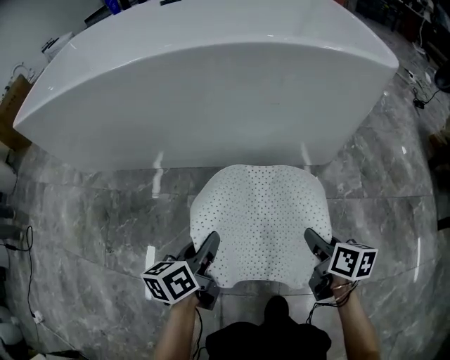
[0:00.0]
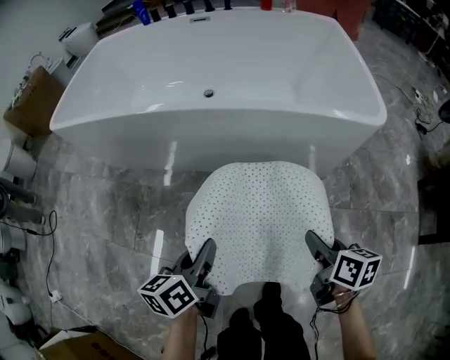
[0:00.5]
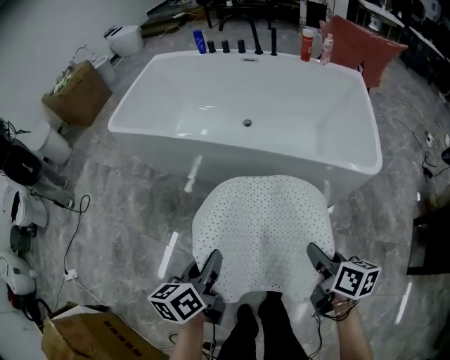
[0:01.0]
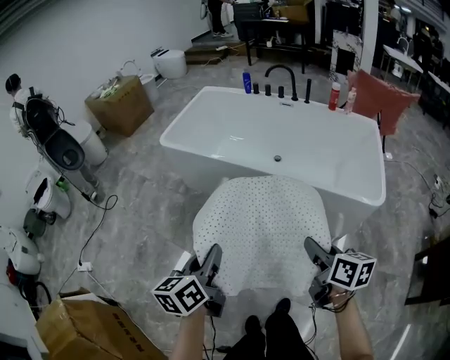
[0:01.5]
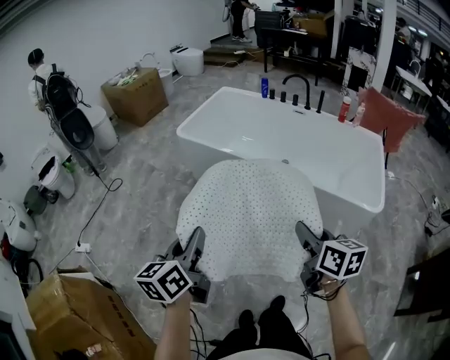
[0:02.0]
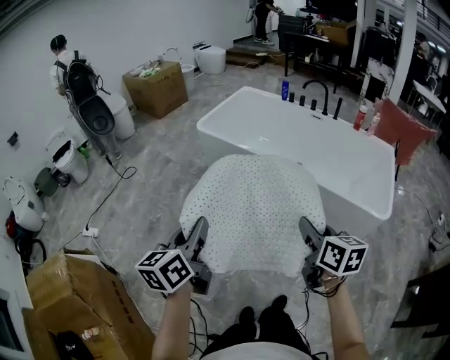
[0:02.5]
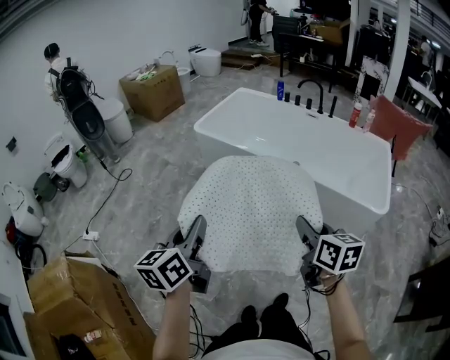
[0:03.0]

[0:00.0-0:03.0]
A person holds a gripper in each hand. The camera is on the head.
0.0 to 1.5 s: The grippers both shift upward by some 60 cm. The left gripper turns by about 30 degrees. Meanwhile the right gripper changes its angle by approximately 30 degrees.
1.5 to 3.0 s: The right gripper travels to the left and upward by about 15 cm, while the left gripper goes some 20 cm to the left, upward and backward.

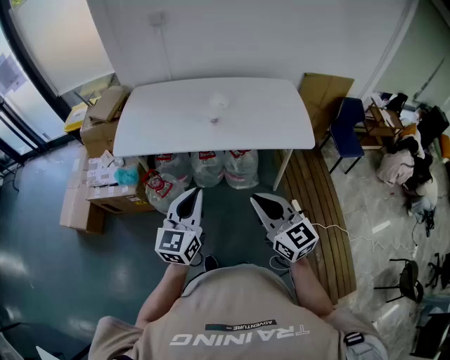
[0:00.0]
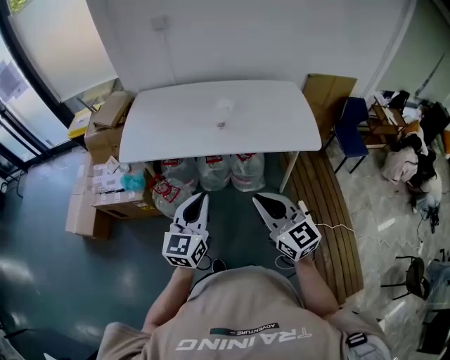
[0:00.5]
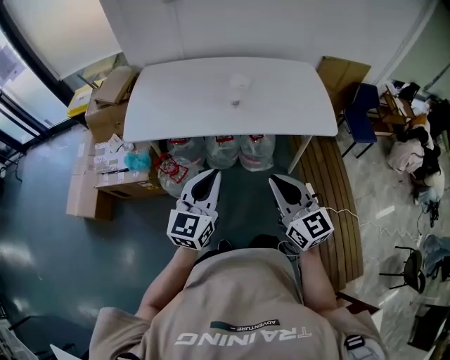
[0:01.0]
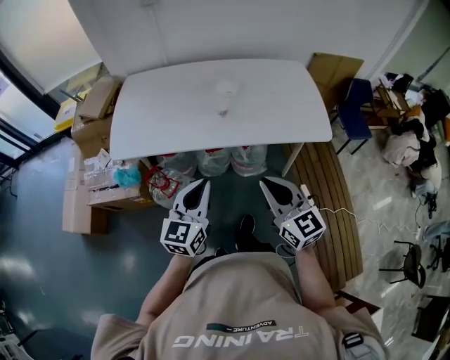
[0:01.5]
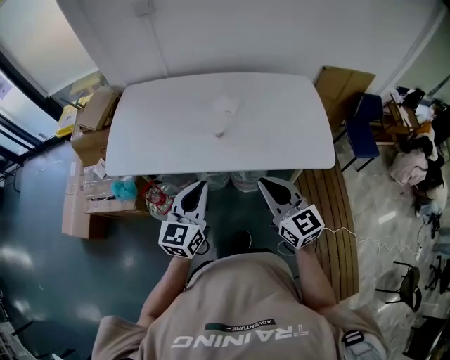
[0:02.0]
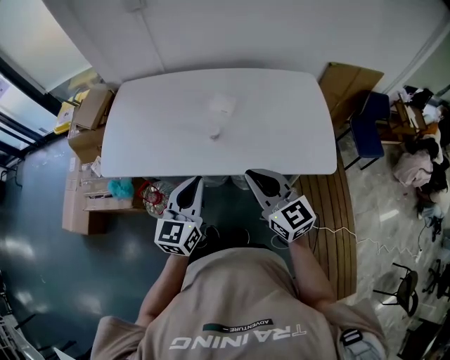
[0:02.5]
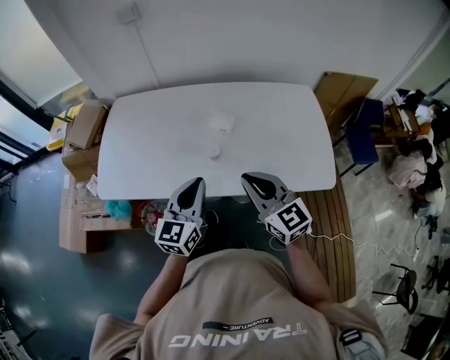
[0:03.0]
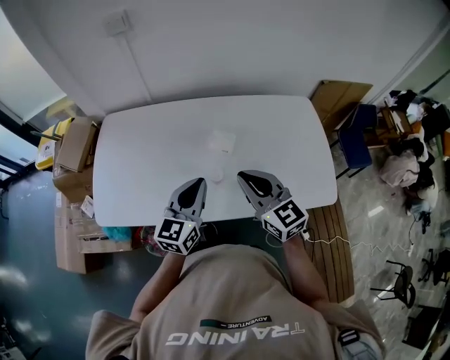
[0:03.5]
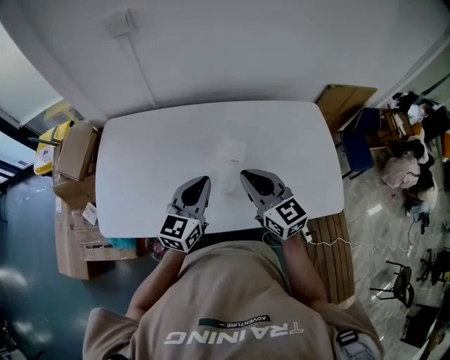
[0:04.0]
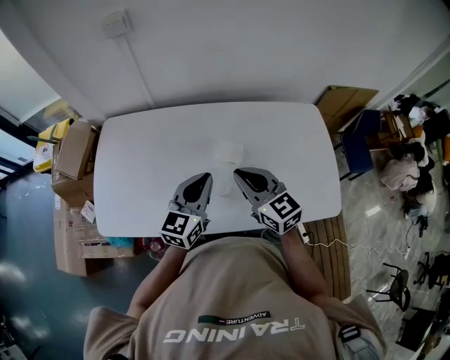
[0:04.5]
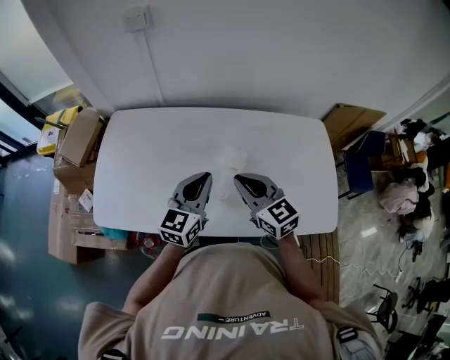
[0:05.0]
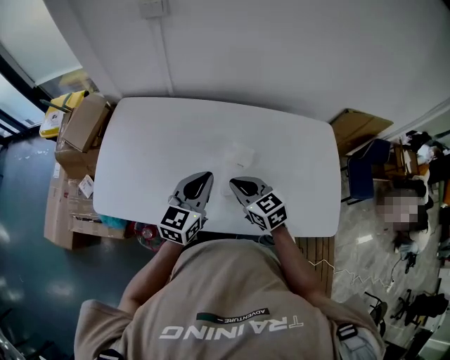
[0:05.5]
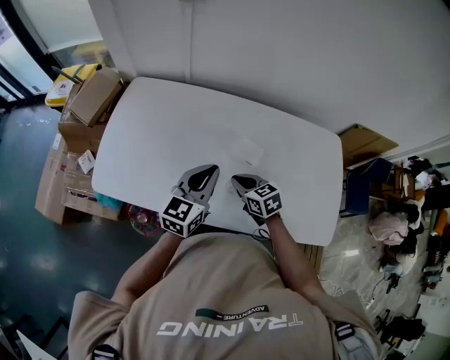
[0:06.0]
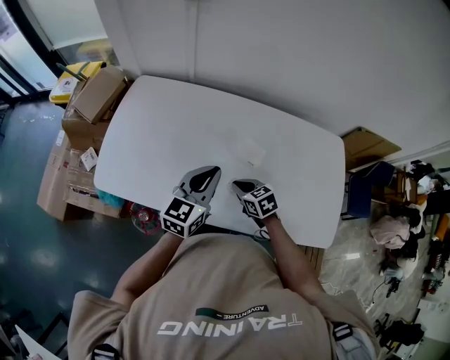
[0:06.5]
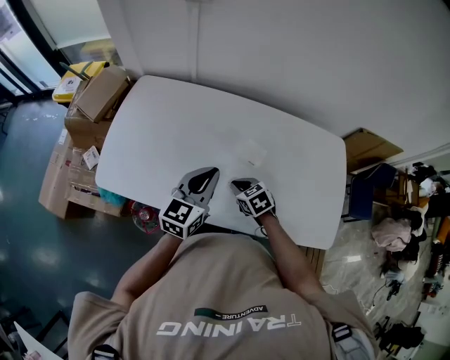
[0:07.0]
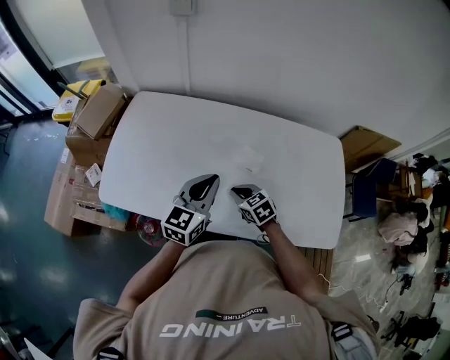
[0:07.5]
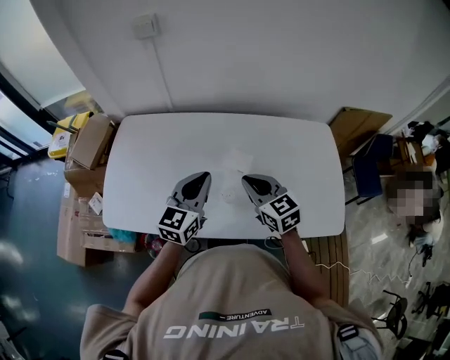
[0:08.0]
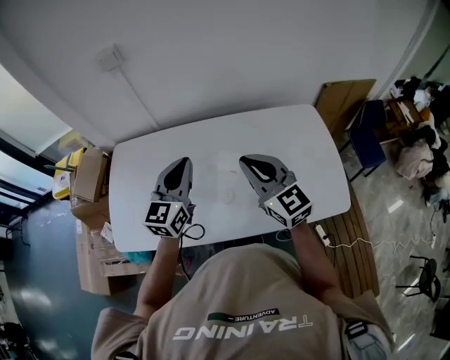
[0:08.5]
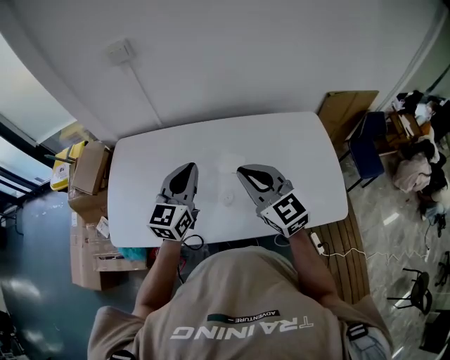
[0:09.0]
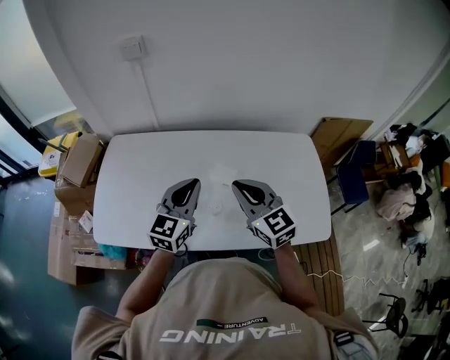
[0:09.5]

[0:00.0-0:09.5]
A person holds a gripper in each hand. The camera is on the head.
0.0 to 2.0 s: Both grippers move forward, approximately 20 cm.
2.0 to 4.0 s: Both grippers travel together forward, about 30 cm.
4.0 to 5.5 s: The right gripper travels downward by about 10 cm, and changes its angle by some 20 degrees.
5.5 to 7.5 s: The right gripper moves downward, some 10 cm.
7.5 to 9.5 s: The left gripper shifts approximately 5 cm upward. Meanwhile the right gripper goes some 25 cm upward, and angles its fingers upward, by some 30 degrees.

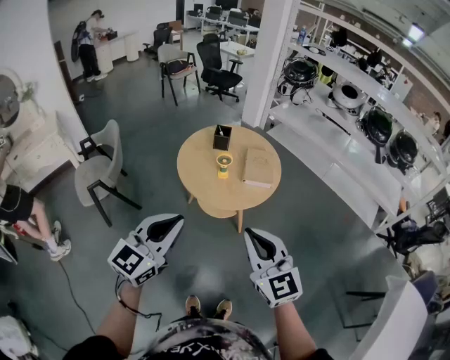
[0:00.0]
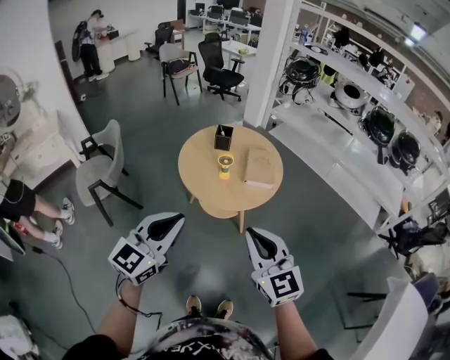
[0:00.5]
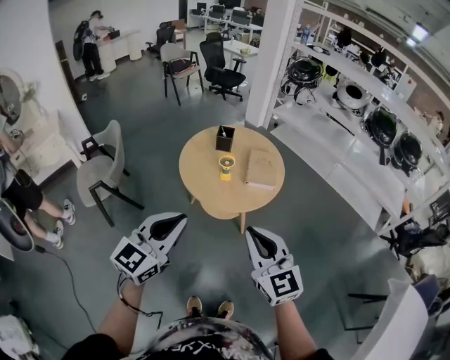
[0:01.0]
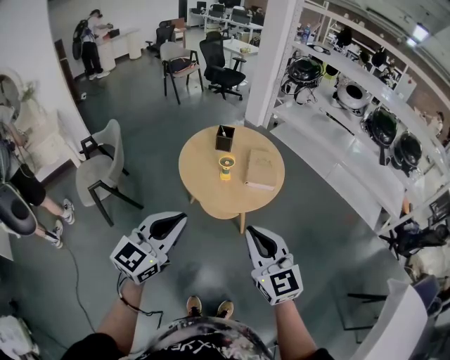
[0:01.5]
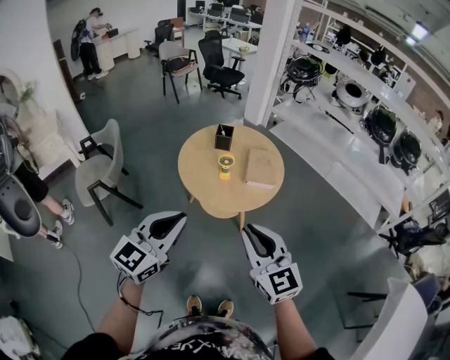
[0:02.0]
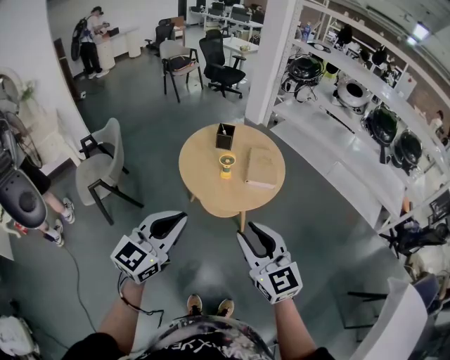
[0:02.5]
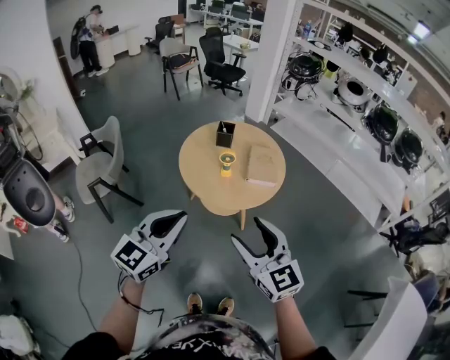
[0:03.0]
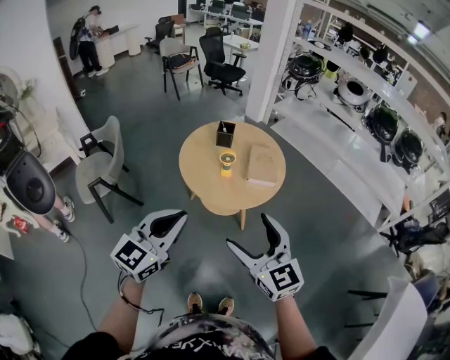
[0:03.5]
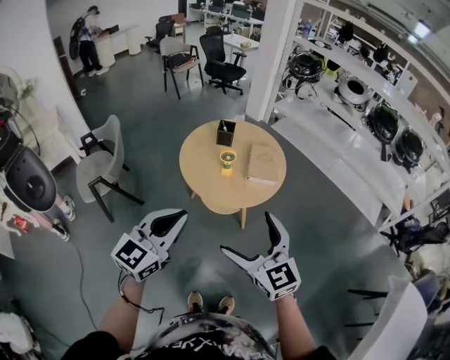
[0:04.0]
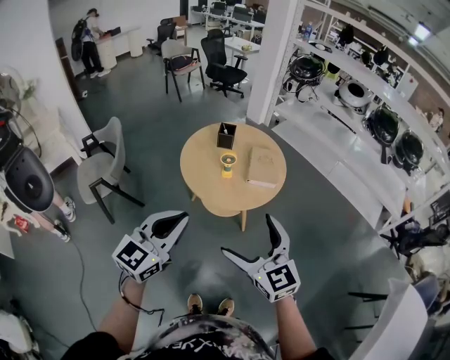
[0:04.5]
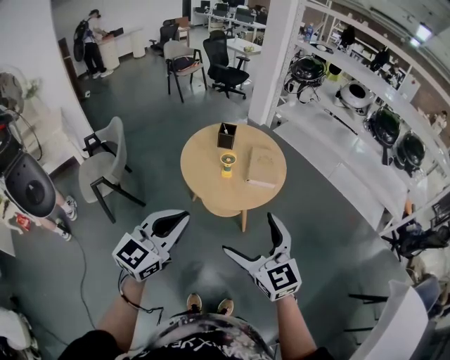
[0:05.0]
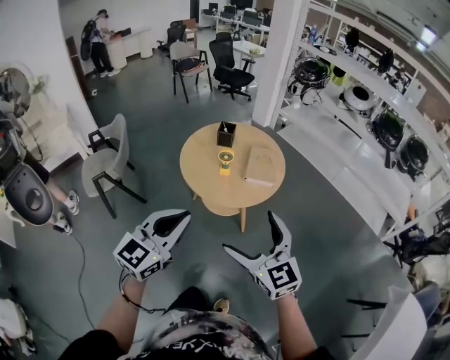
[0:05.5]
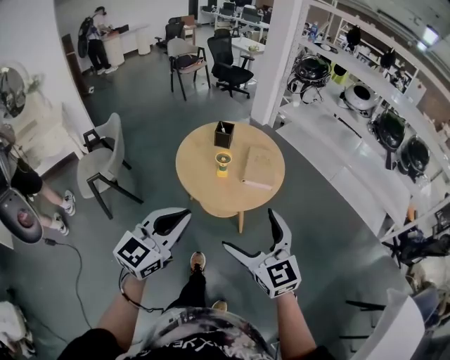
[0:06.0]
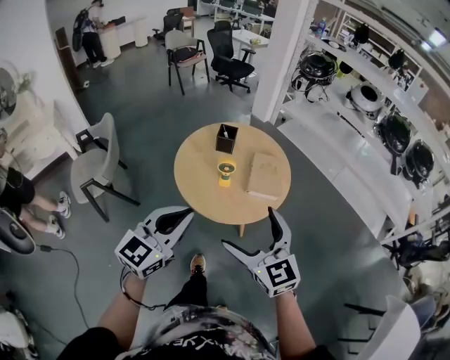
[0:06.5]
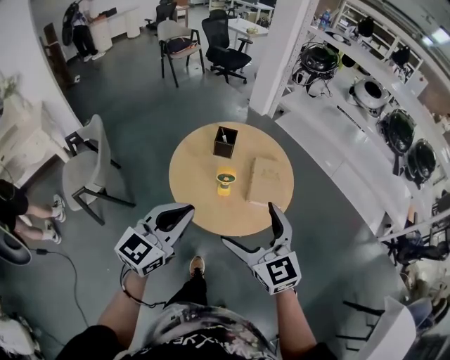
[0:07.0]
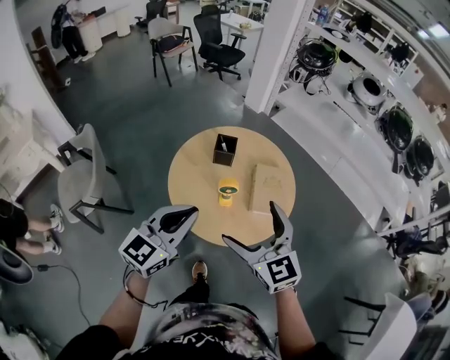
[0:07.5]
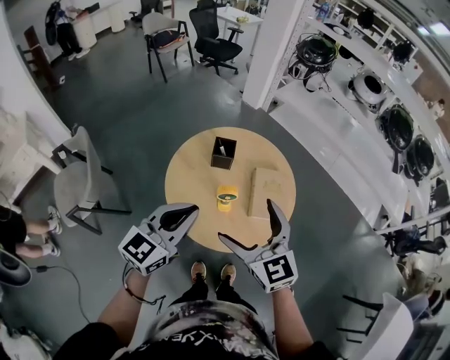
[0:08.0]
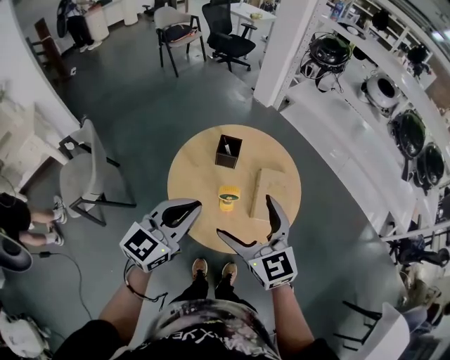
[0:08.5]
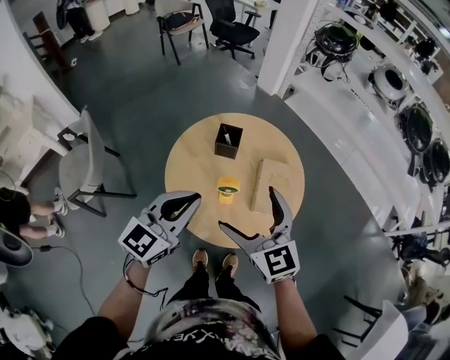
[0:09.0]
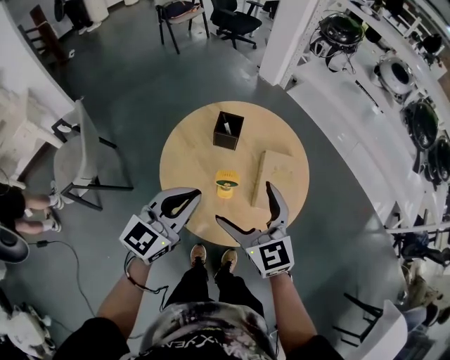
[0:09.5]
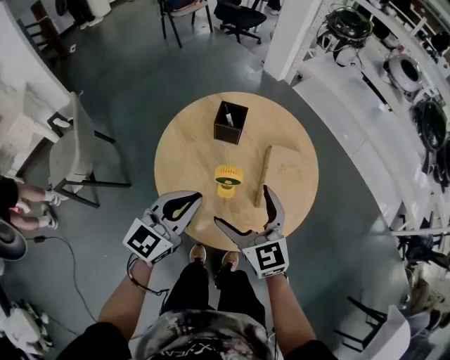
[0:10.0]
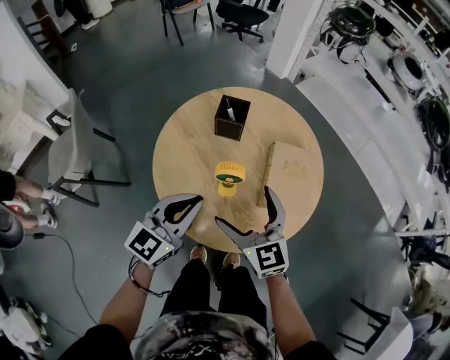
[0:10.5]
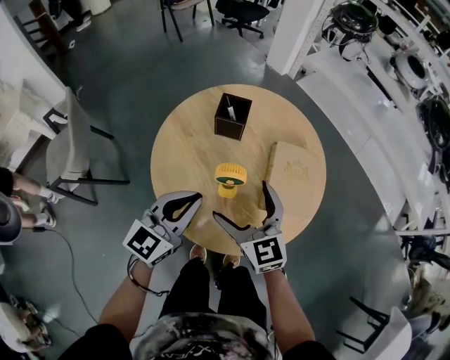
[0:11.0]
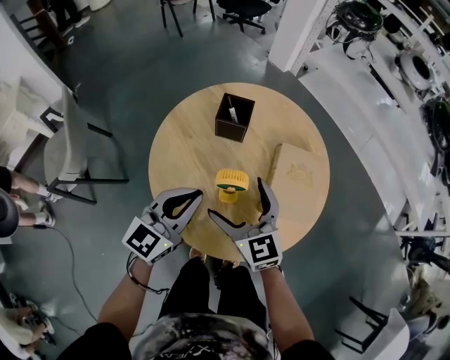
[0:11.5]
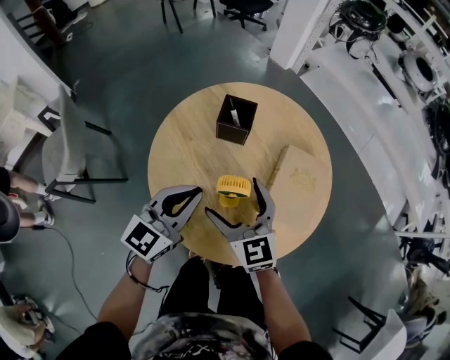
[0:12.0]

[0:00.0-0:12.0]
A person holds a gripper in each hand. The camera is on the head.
0.0 to 2.0 s: There are only small adjustments of the grippers.
2.0 to 4.0 s: The right gripper opens up.
4.0 to 6.0 s: Both grippers travel together to the right, roughly 5 cm.
6.0 to 8.0 s: The grippers both shift forward by some 30 cm.
8.0 to 10.0 s: The two grippers go some 15 cm downward.
10.0 to 12.0 s: The grippers both shift downward and forward by approximately 10 cm.

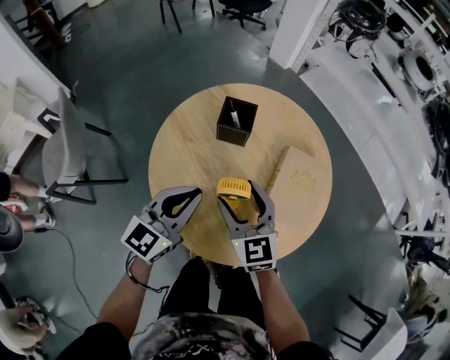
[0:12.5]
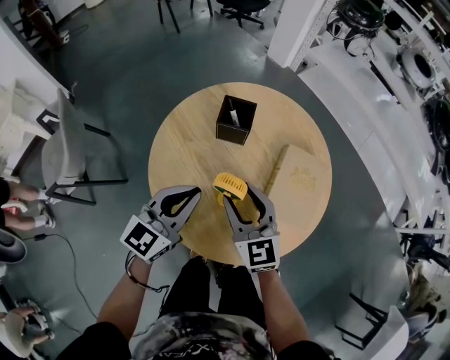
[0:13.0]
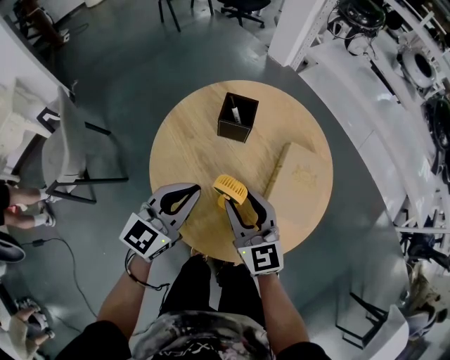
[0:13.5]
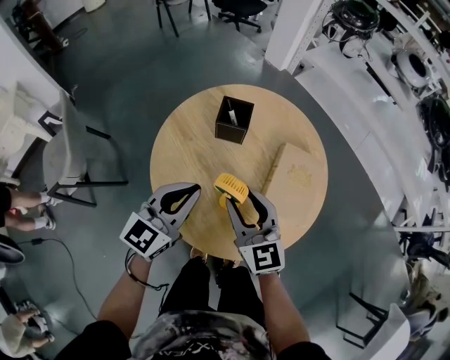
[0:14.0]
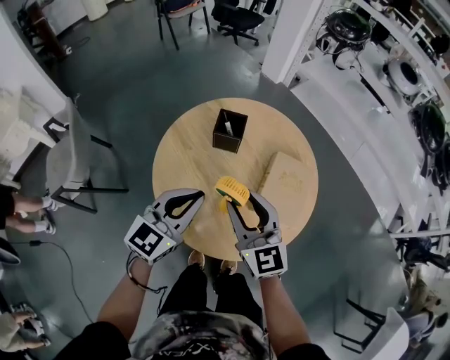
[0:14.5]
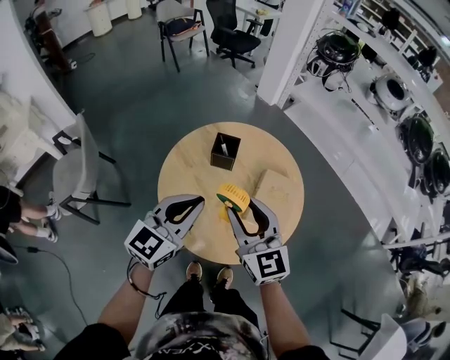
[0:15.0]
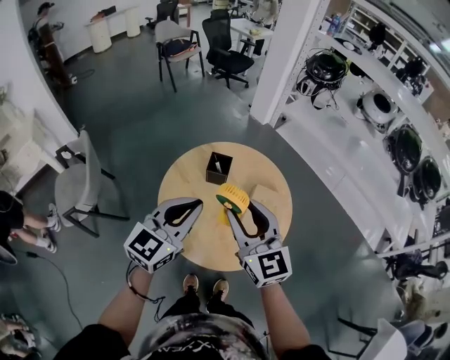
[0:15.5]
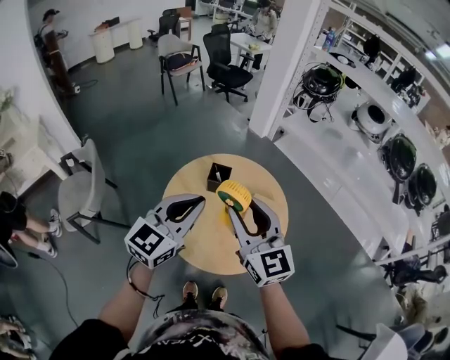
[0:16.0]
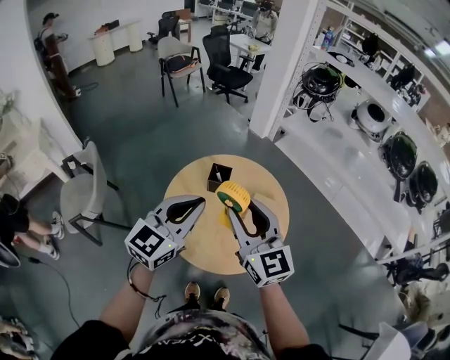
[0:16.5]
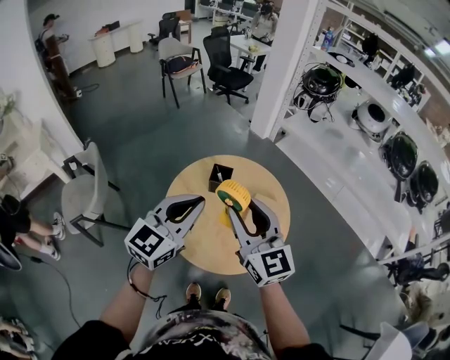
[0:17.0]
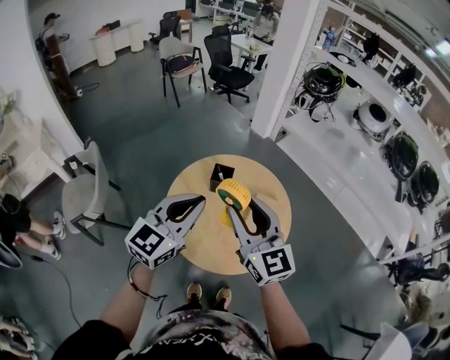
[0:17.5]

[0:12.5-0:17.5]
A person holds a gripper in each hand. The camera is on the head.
12.5 to 15.0 s: Both grippers travel together upward, some 15 cm.
15.0 to 17.5 s: Both grippers travel together upward, some 15 cm.
